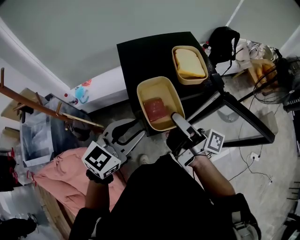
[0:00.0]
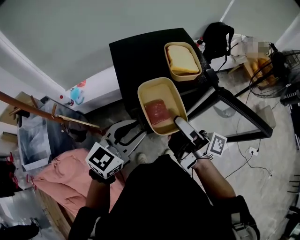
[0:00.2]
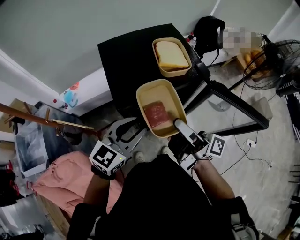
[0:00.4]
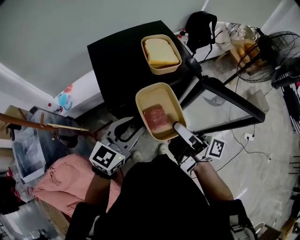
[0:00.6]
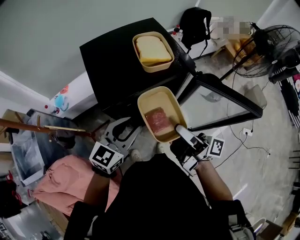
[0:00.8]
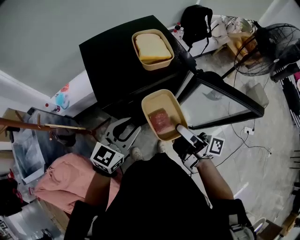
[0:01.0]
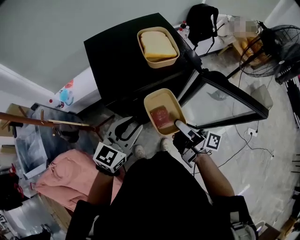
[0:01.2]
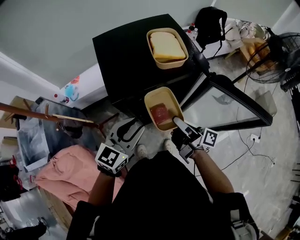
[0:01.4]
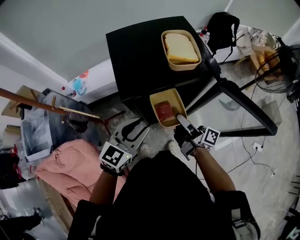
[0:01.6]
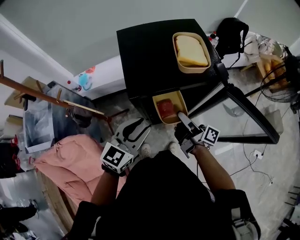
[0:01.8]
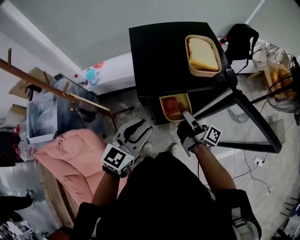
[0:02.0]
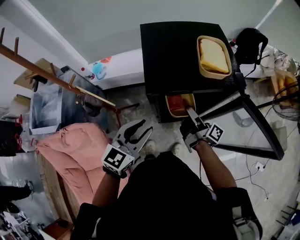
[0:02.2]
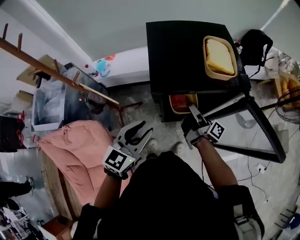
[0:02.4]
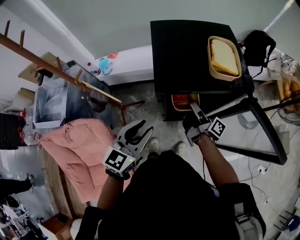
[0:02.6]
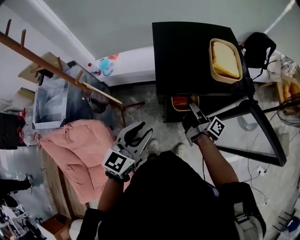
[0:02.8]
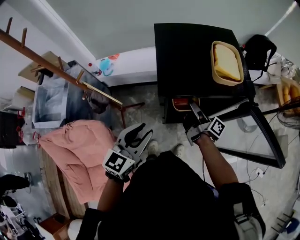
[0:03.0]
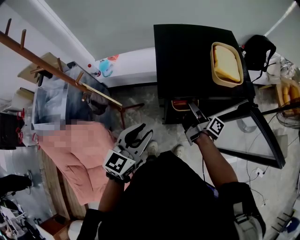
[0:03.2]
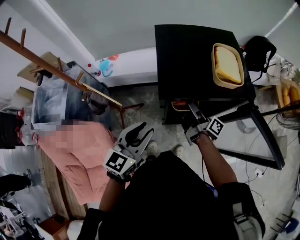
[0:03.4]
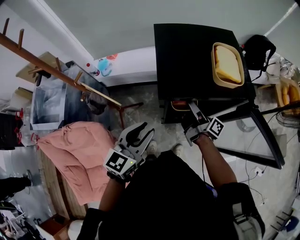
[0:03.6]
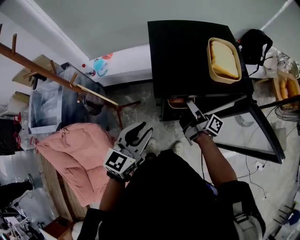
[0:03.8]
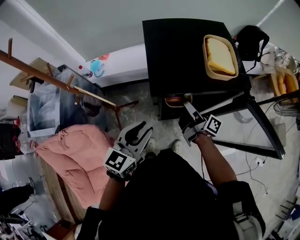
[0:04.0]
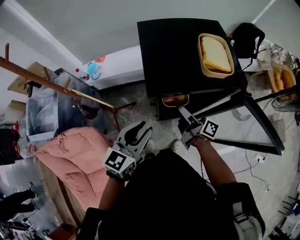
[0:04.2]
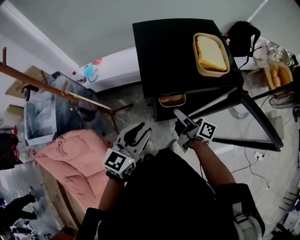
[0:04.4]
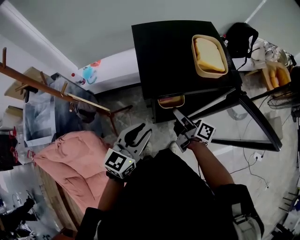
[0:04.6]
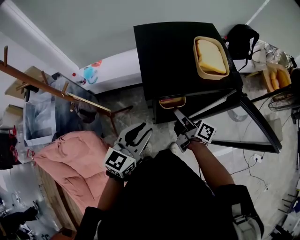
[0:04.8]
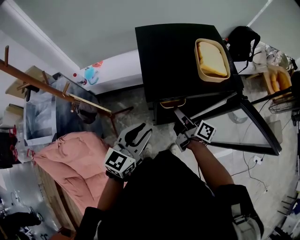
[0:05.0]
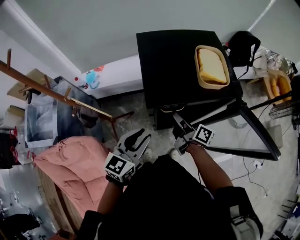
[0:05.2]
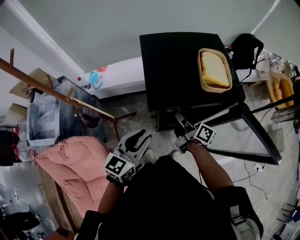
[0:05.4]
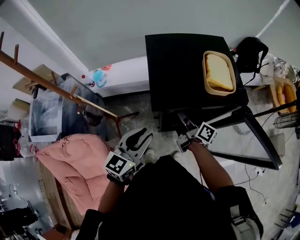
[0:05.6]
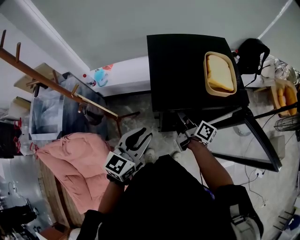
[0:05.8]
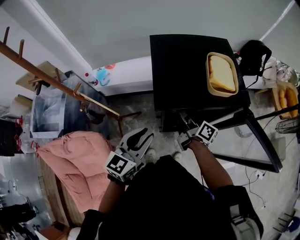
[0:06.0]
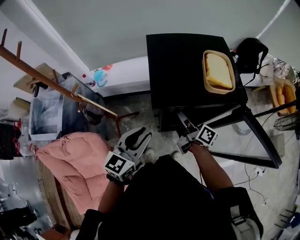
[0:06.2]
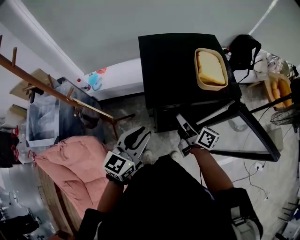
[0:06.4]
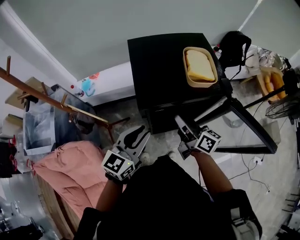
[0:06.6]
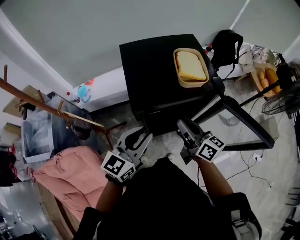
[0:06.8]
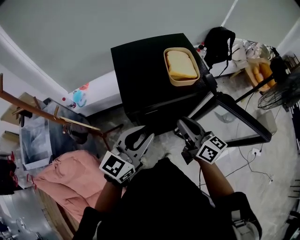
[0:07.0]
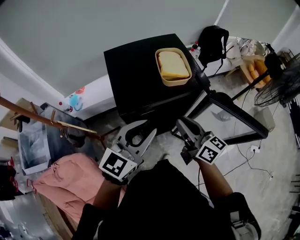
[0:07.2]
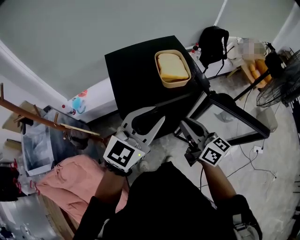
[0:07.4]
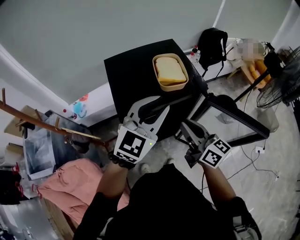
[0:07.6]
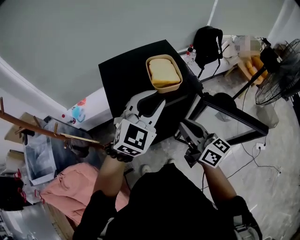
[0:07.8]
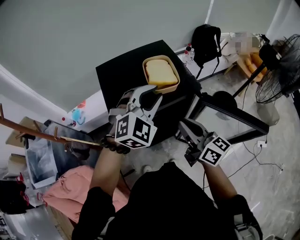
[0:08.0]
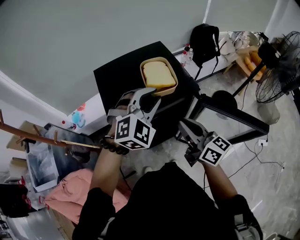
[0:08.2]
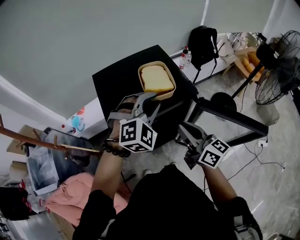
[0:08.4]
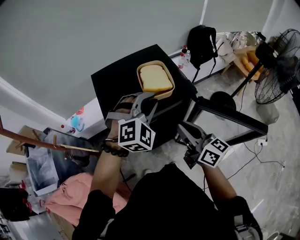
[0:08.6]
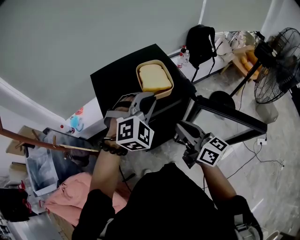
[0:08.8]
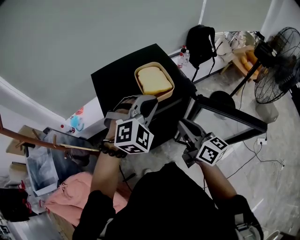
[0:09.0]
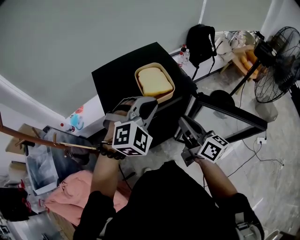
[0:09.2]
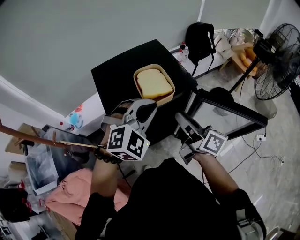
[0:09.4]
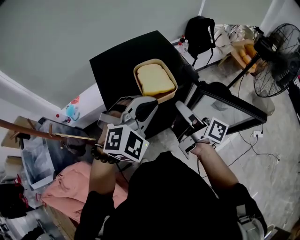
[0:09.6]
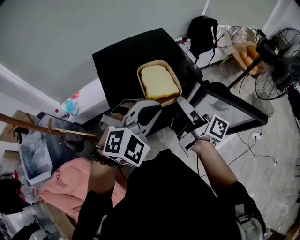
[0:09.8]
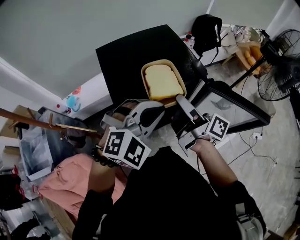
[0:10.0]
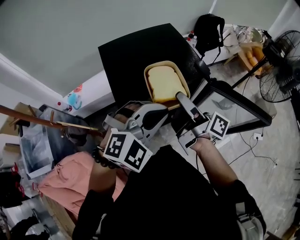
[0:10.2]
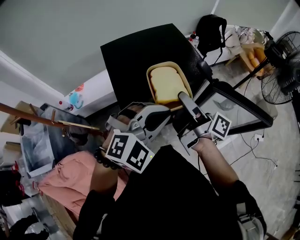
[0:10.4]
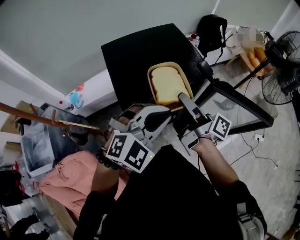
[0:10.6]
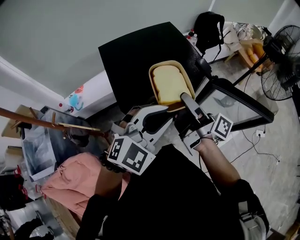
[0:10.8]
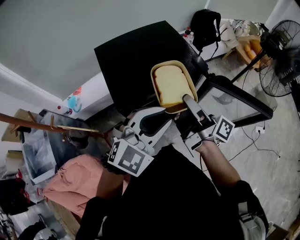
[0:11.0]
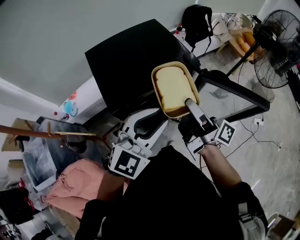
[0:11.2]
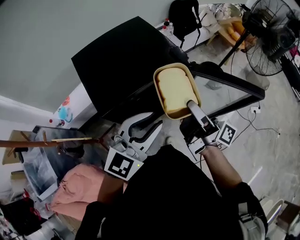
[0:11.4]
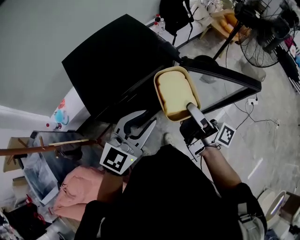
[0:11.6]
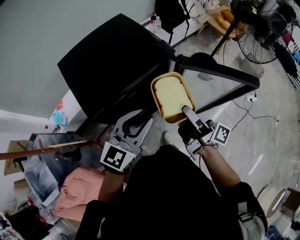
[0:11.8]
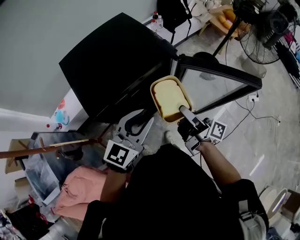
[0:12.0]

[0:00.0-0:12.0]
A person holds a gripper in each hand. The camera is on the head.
0:00.0 to 0:01.6: The right gripper shifts about 15 cm downward and to the right; the left gripper shifts some 10 cm downward.
0:01.6 to 0:03.0: The left gripper is displaced to the left by approximately 10 cm, and swivels about 20 degrees. The right gripper heads forward and to the left, covering about 10 cm.
0:03.0 to 0:04.4: The grippers move only a little.
0:04.4 to 0:06.0: The right gripper shifts roughly 5 cm forward, and closes.
0:06.0 to 0:07.6: The left gripper moves to the right, upward and forward, roughly 25 cm, and turns by roughly 40 degrees; the right gripper moves upward, to the right and backward, roughly 20 cm, and turns by roughly 40 degrees.
0:07.6 to 0:09.0: The left gripper is displaced forward and downward by about 5 cm, and swivels roughly 50 degrees.
0:09.0 to 0:10.4: The left gripper goes approximately 10 cm backward. Meanwhile the right gripper is displaced to the left by approximately 5 cm, rolls clockwise, seen from behind, by approximately 40 degrees, and opens up.
0:10.4 to 0:12.0: The right gripper goes approximately 15 cm to the right, downward and backward, while the left gripper is displaced downward by some 5 cm, and rotates around the line of its fingers by approximately 40 degrees, counterclockwise from behind.

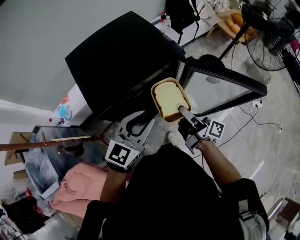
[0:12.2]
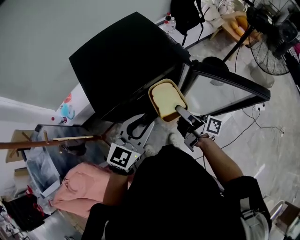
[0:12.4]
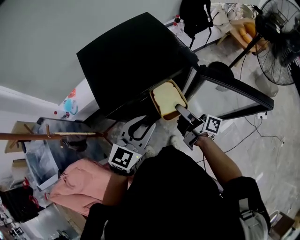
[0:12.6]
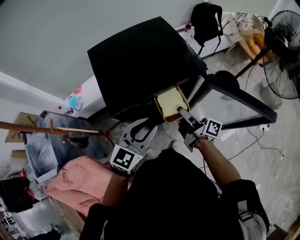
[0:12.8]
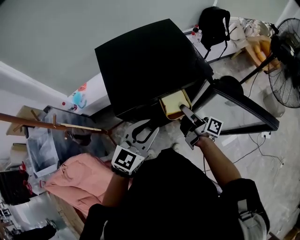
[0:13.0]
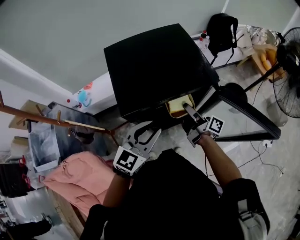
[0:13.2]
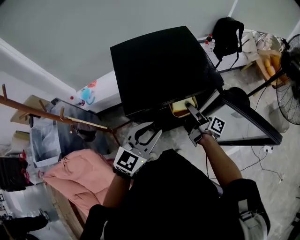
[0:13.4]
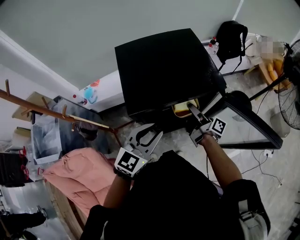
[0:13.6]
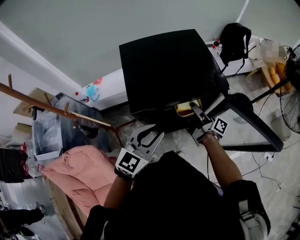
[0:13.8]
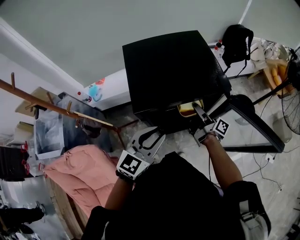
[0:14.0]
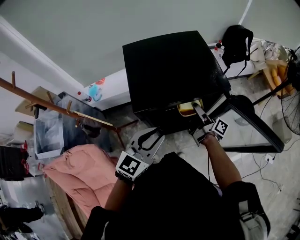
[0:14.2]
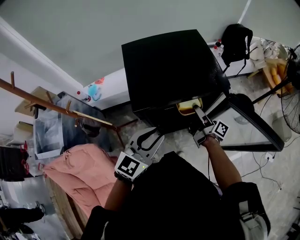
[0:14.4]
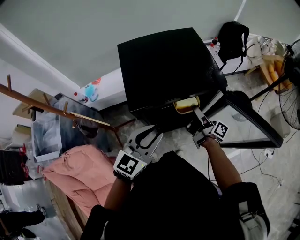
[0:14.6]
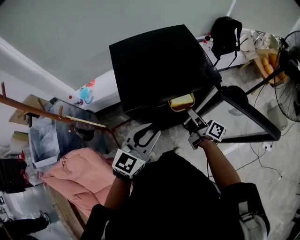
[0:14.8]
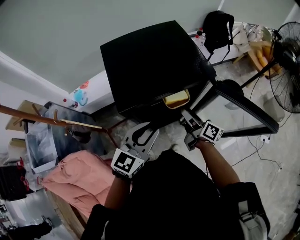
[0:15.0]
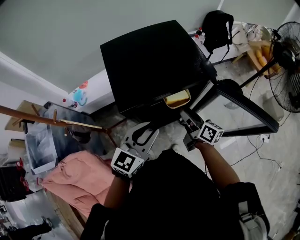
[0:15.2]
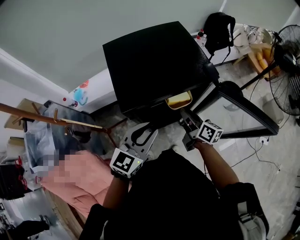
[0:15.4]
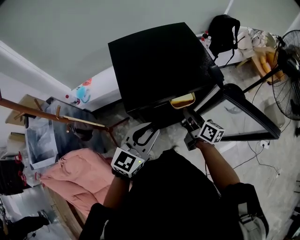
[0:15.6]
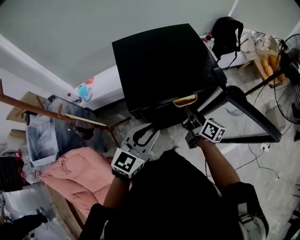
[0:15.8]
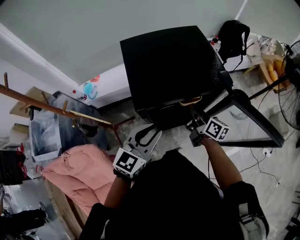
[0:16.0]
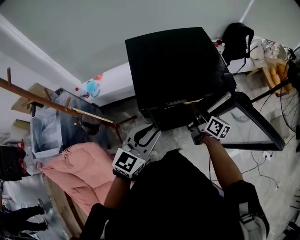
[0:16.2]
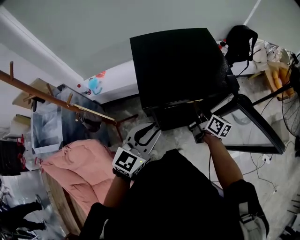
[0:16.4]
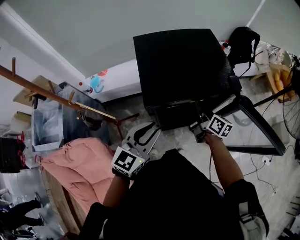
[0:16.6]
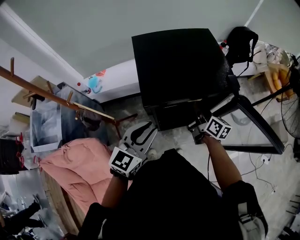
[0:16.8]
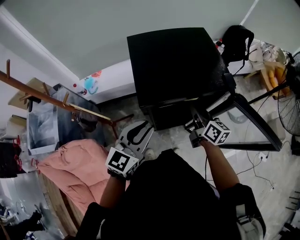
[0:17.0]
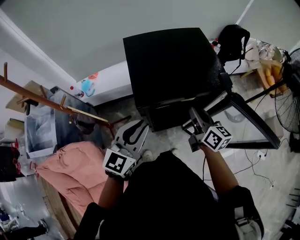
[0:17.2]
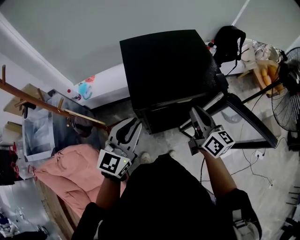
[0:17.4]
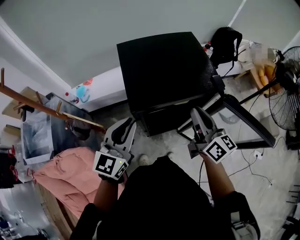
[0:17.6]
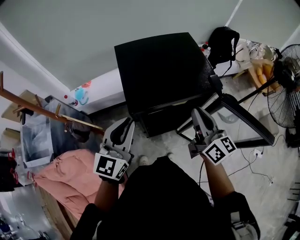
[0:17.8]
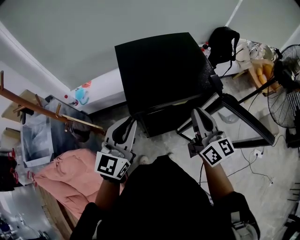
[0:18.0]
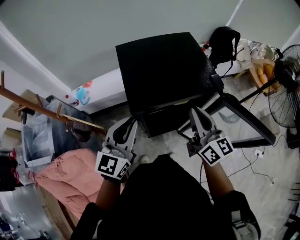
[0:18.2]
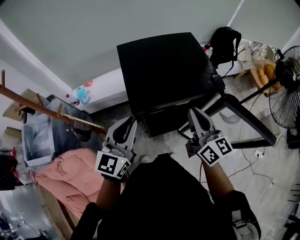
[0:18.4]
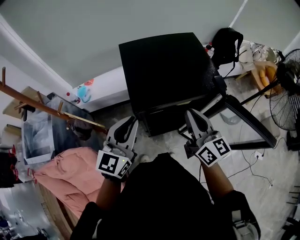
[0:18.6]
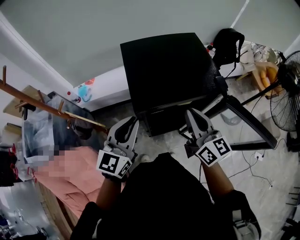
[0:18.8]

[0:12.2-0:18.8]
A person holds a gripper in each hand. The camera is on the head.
0:12.2 to 0:13.8: The left gripper moves to the left, about 5 cm; the right gripper is displaced forward and to the left by about 15 cm.
0:13.8 to 0:15.4: The right gripper is displaced backward by some 5 cm, changes its angle by some 30 degrees, and closes its fingers.
0:15.4 to 0:17.2: The right gripper heads upward, covering roughly 5 cm; the left gripper moves to the left, about 5 cm.
0:17.2 to 0:18.8: The right gripper travels upward by about 10 cm.

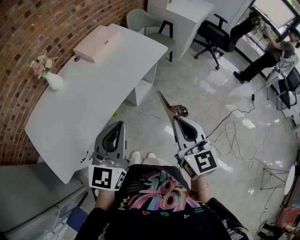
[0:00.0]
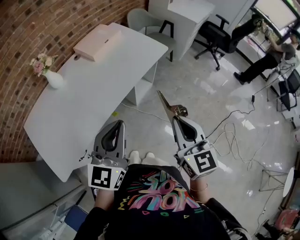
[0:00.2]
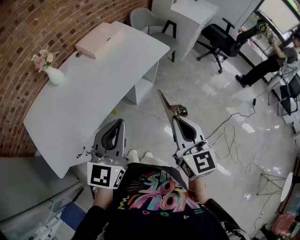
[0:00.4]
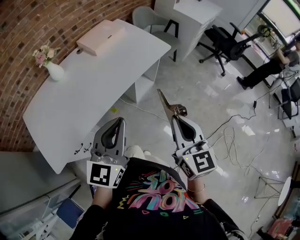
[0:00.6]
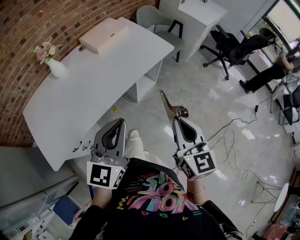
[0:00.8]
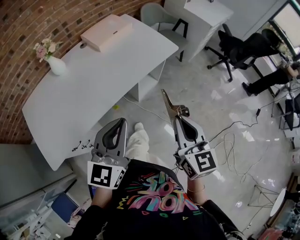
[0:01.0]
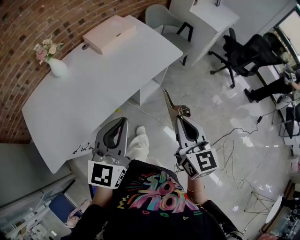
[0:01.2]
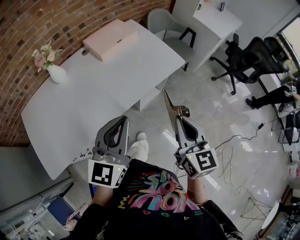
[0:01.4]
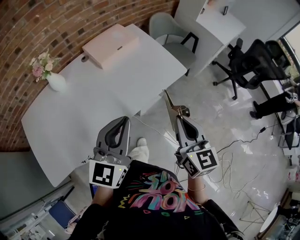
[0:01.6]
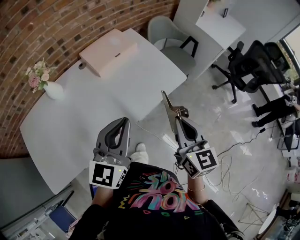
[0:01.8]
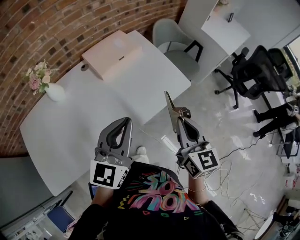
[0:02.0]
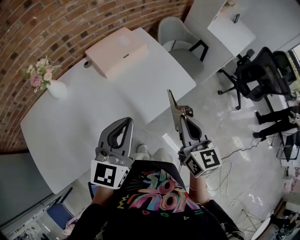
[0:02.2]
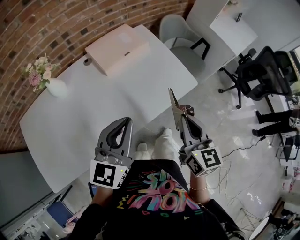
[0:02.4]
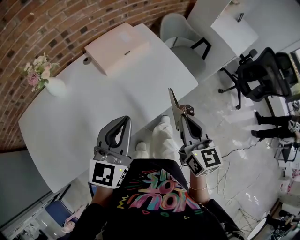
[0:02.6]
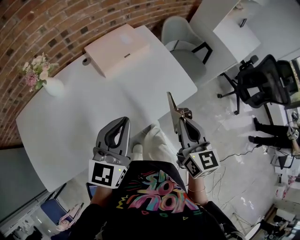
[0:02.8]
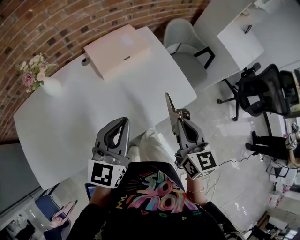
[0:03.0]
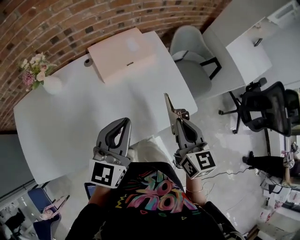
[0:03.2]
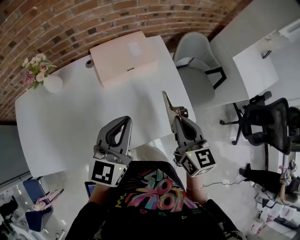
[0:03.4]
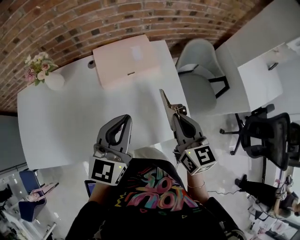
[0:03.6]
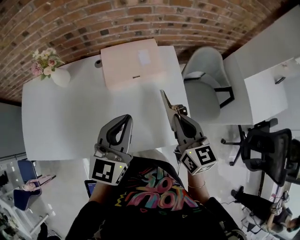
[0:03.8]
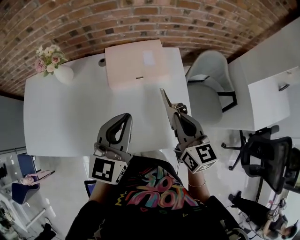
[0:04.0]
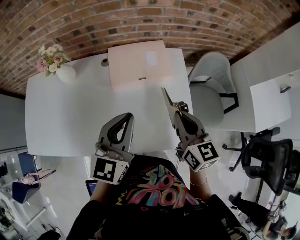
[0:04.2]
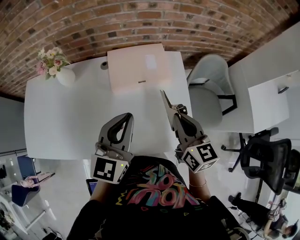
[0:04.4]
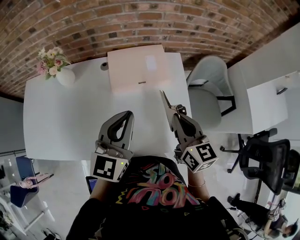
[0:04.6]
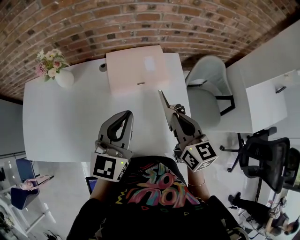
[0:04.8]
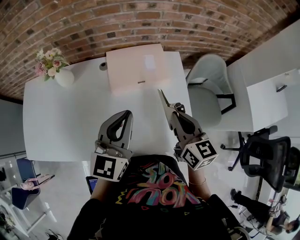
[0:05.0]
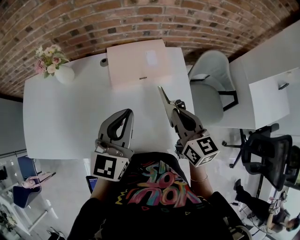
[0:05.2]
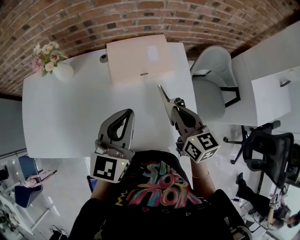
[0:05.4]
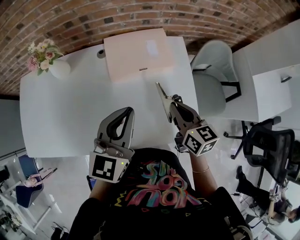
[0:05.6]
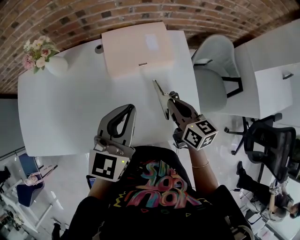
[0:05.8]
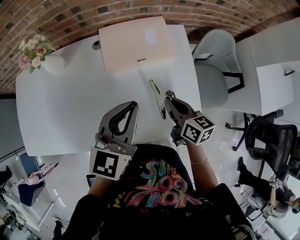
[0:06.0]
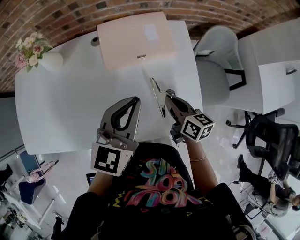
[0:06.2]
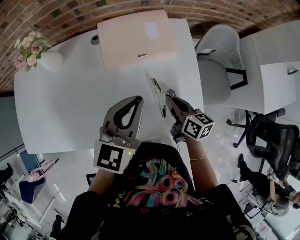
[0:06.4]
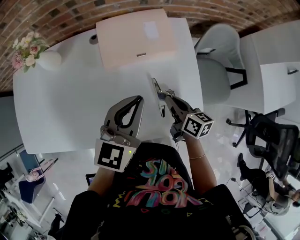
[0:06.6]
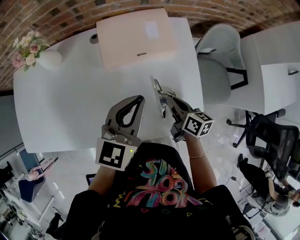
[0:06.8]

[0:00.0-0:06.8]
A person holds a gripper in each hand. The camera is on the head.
0:00.0 to 0:01.4: Both grippers travel together forward, some 15 cm.
0:01.4 to 0:02.8: The grippers both shift forward by about 20 cm.
0:02.8 to 0:04.0: The left gripper shifts by roughly 20 cm, and rotates about 30 degrees, while the right gripper moves about 25 cm, and swivels about 30 degrees.
0:04.0 to 0:05.4: The right gripper moves roughly 5 cm.
0:05.4 to 0:06.8: The right gripper travels downward by some 15 cm, and swivels about 30 degrees, while the left gripper heads downward, covering about 5 cm.
